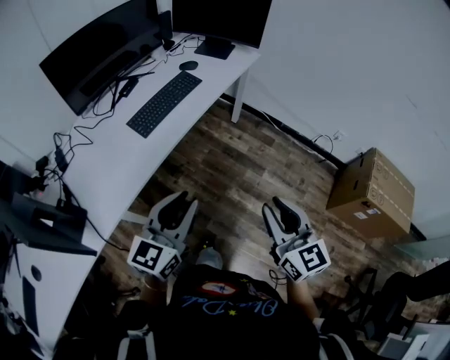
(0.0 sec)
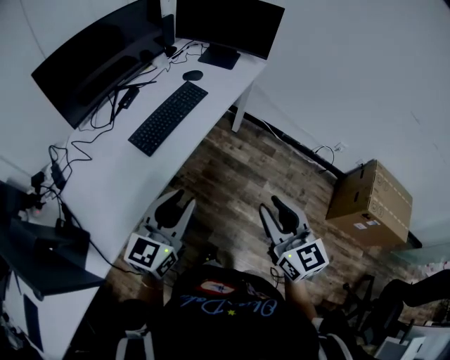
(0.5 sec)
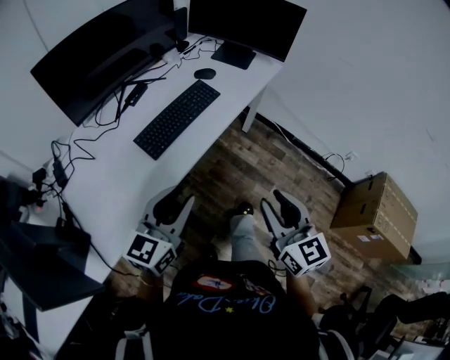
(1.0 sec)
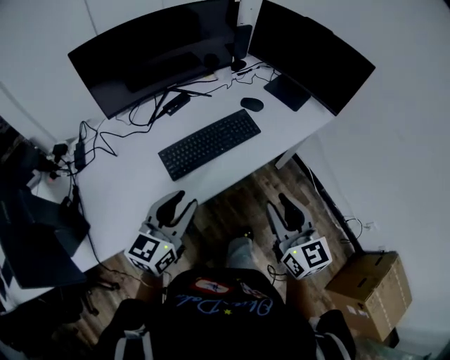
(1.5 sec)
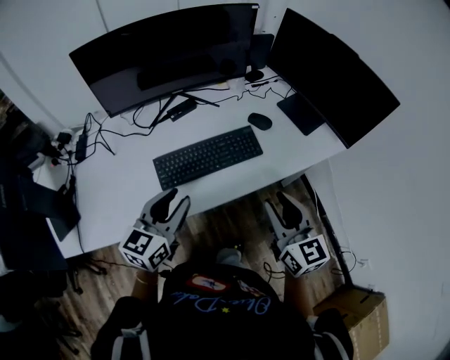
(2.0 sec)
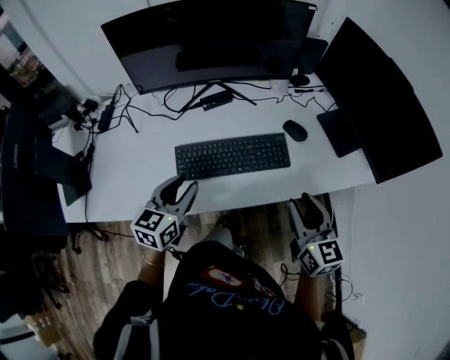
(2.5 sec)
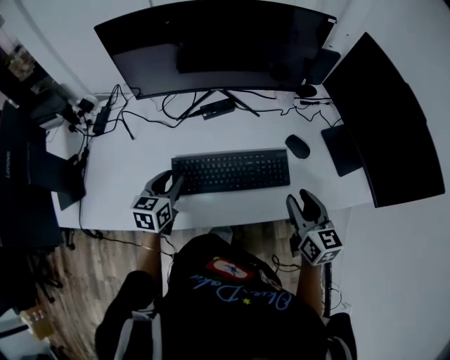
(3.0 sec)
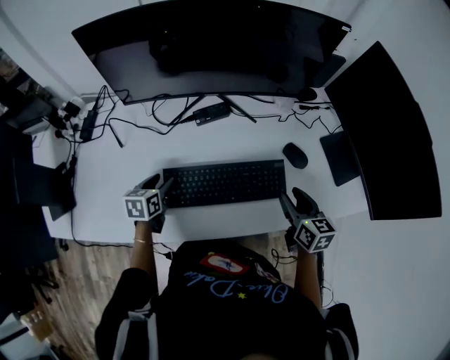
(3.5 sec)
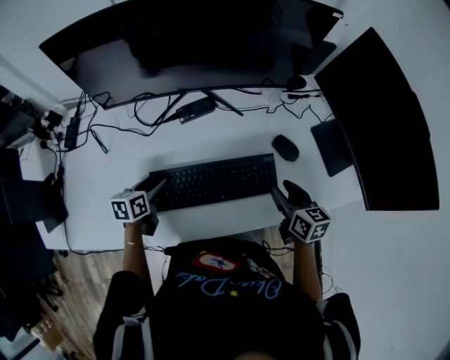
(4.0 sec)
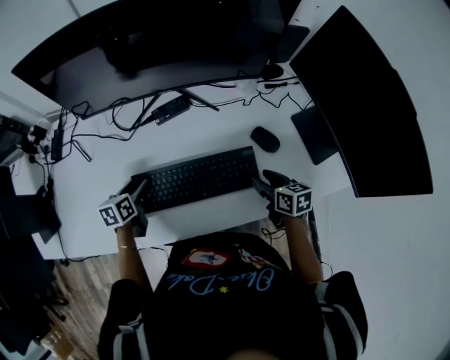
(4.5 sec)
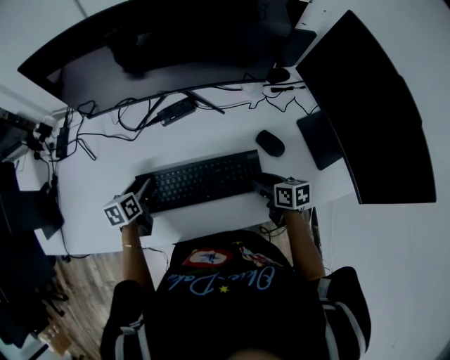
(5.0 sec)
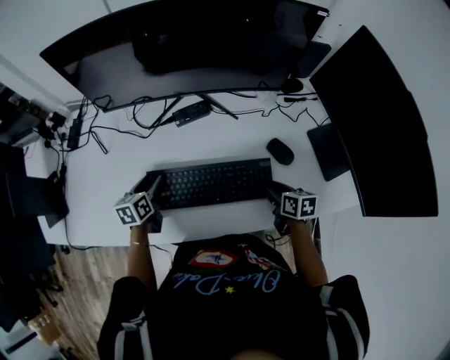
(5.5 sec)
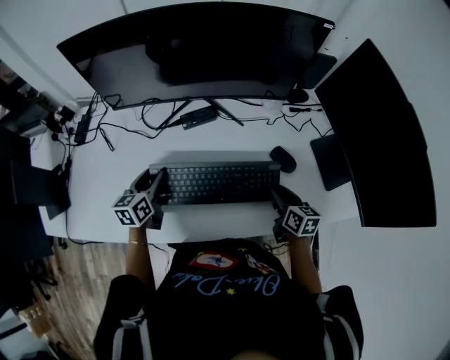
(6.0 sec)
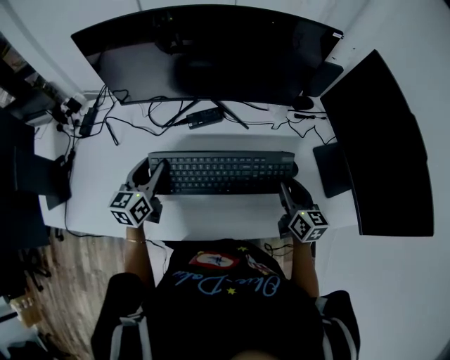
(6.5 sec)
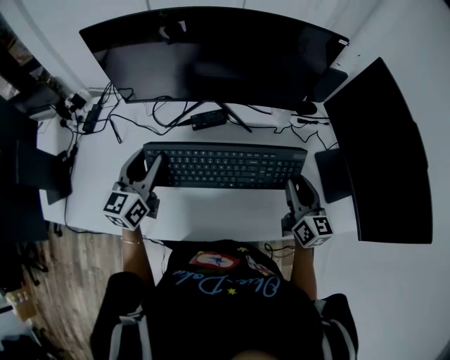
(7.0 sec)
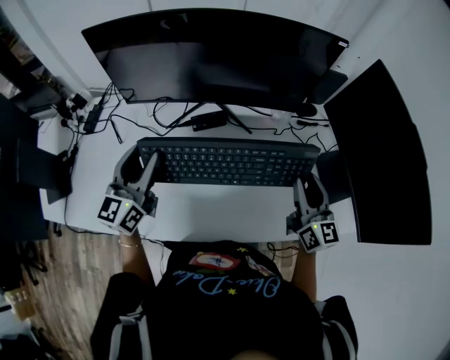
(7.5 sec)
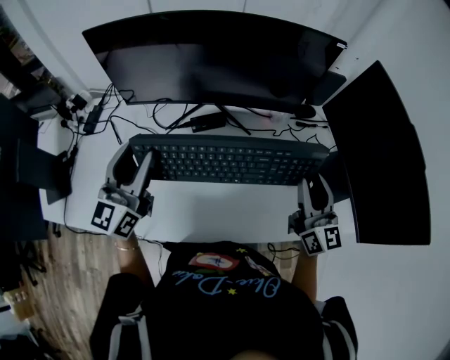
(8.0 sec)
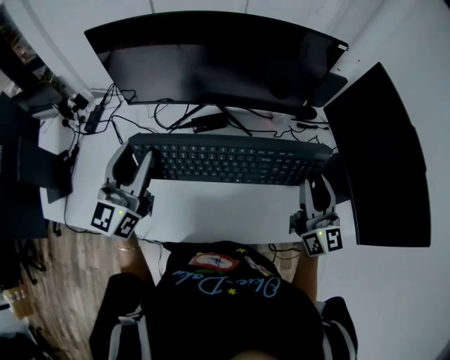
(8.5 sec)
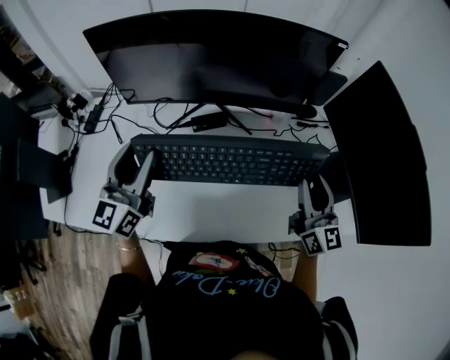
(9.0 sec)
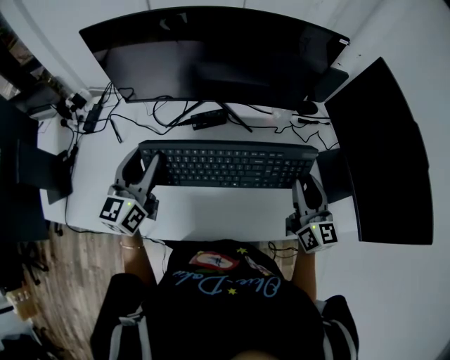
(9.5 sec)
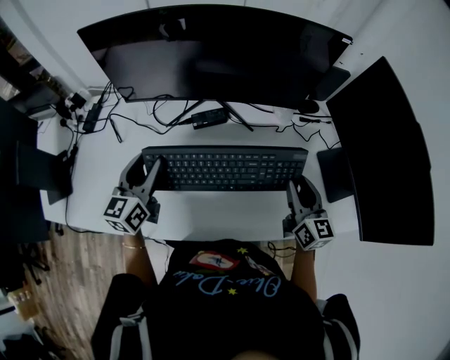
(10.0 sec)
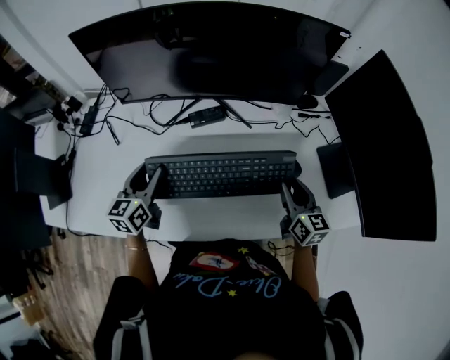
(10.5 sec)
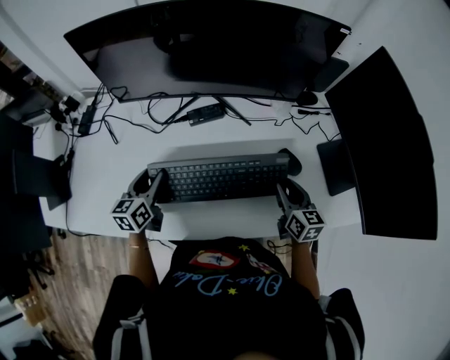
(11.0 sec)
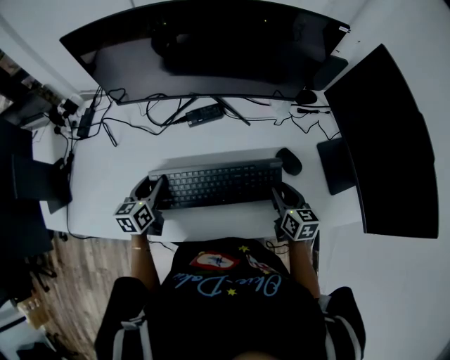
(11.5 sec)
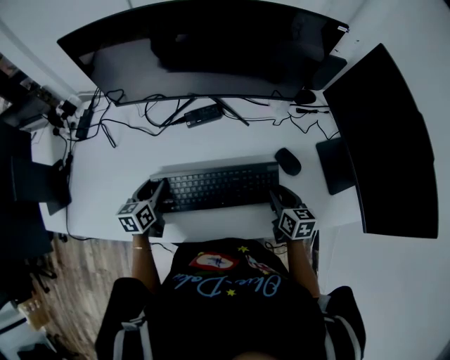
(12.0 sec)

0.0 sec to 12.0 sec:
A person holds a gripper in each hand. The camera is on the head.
0.0 sec to 2.0 sec: The right gripper moves some 50 cm, and changes its angle by about 30 degrees. The left gripper changes place by some 35 cm, and swivels roughly 40 degrees.
2.0 sec to 4.0 sec: The right gripper shifts some 30 cm forward and downward, and changes its angle by roughly 30 degrees. Meanwhile the left gripper shifts roughly 30 cm downward, forward and to the left, swivels approximately 40 degrees, and opens.
4.0 sec to 6.0 sec: The left gripper heads upward, covering approximately 5 cm, and turns by approximately 20 degrees. Meanwhile the right gripper moves downward, some 5 cm.
6.0 sec to 8.0 sec: Both grippers move upward, approximately 25 cm. The left gripper tips its fingers upward by some 30 degrees; the right gripper tilts its fingers some 40 degrees upward.
8.0 sec to 10.0 sec: Both grippers travel together downward, approximately 10 cm.
10.0 sec to 12.0 sec: Both grippers move downward, roughly 15 cm. The left gripper changes its angle by about 30 degrees. The right gripper swivels approximately 30 degrees.

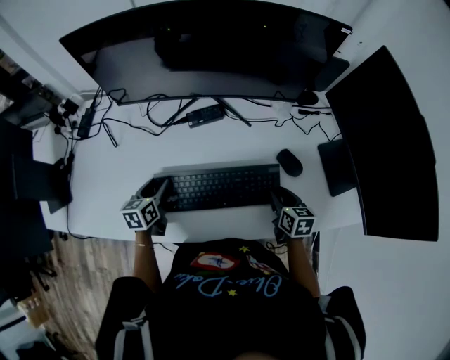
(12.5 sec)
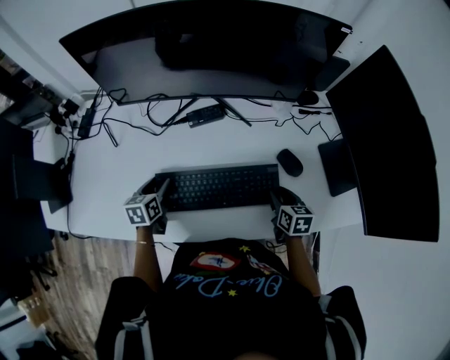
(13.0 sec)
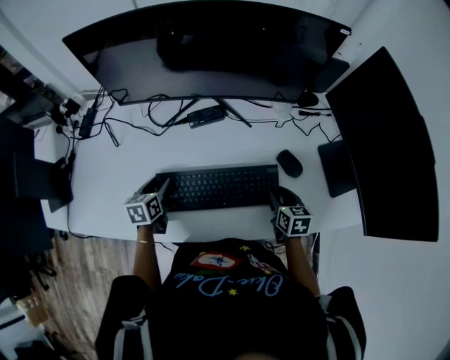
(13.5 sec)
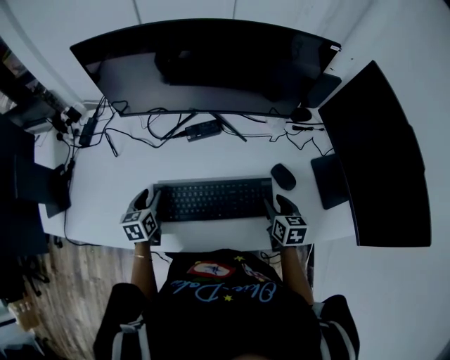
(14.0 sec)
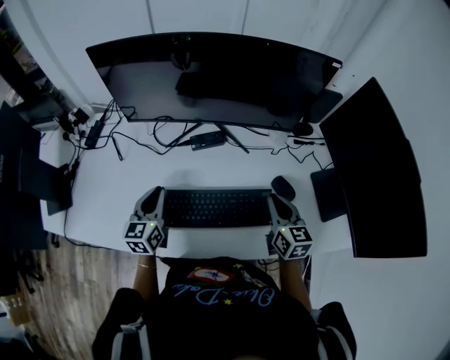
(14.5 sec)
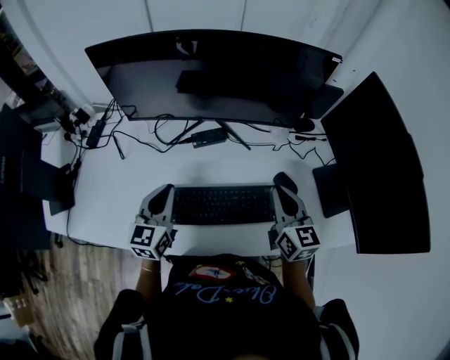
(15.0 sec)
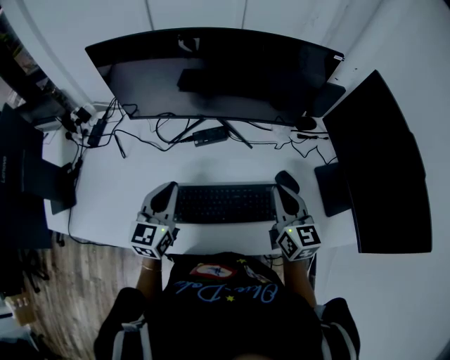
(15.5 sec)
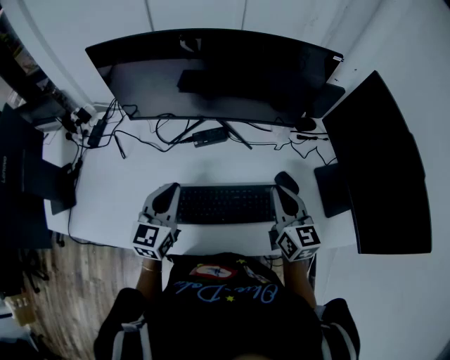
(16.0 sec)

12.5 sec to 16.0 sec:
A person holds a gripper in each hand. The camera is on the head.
12.5 sec to 14.5 sec: Both grippers travel together upward, roughly 10 cm. The left gripper turns by roughly 20 degrees, and closes, while the right gripper rotates roughly 20 degrees, and closes.
14.5 sec to 16.0 sec: The right gripper travels upward by about 5 cm; the left gripper moves upward and to the right, approximately 10 cm.

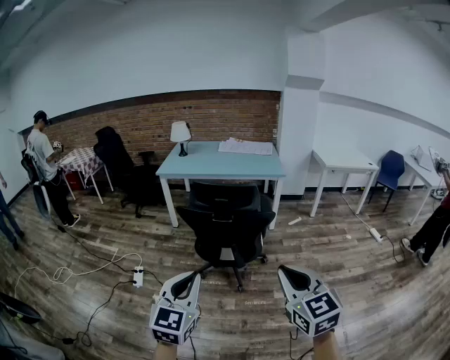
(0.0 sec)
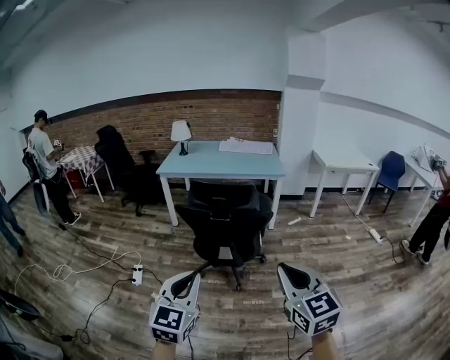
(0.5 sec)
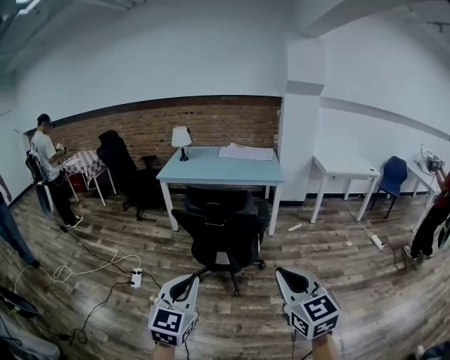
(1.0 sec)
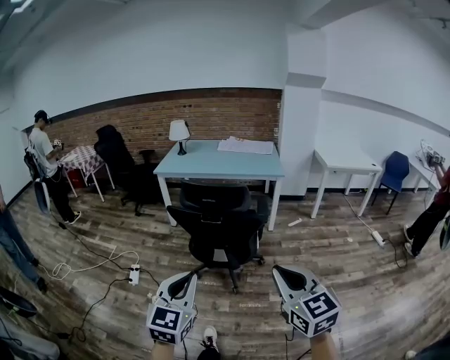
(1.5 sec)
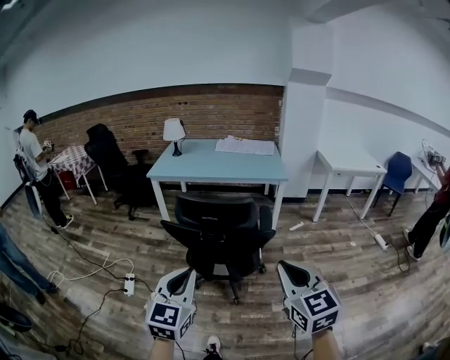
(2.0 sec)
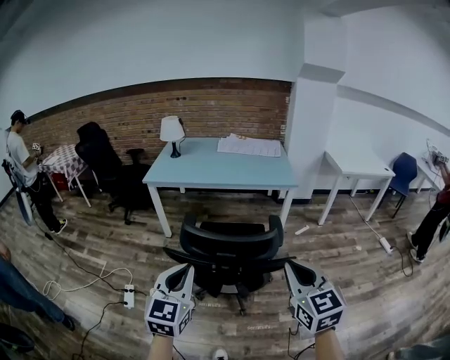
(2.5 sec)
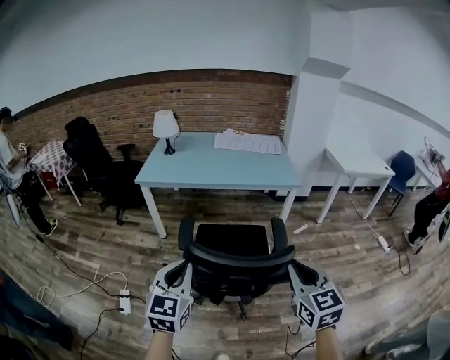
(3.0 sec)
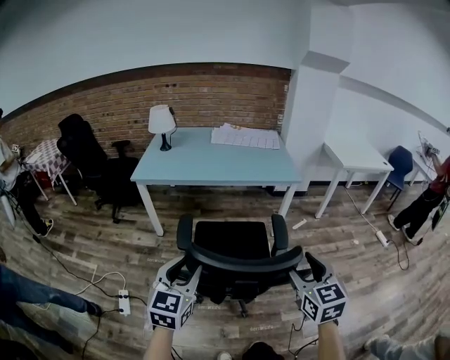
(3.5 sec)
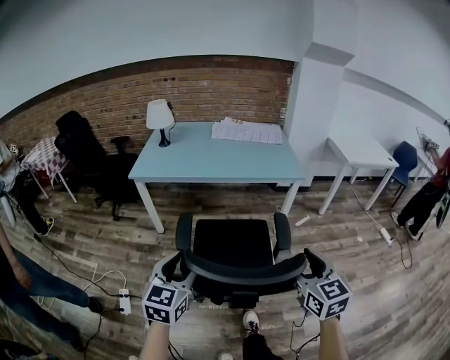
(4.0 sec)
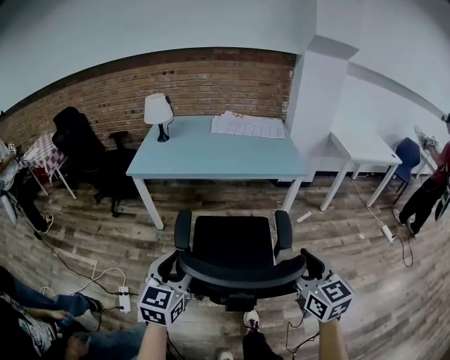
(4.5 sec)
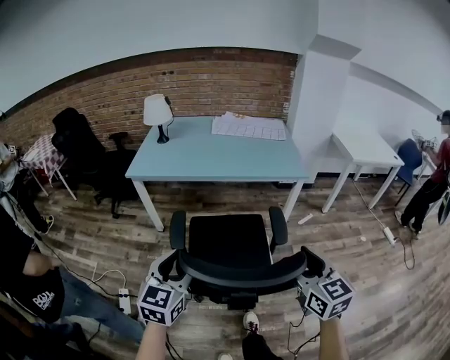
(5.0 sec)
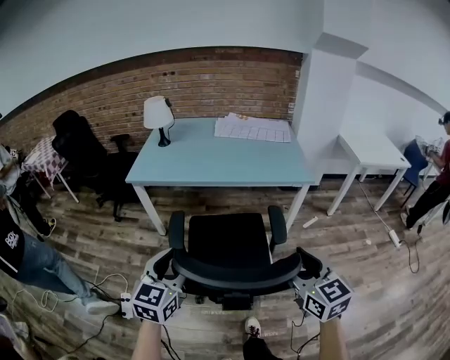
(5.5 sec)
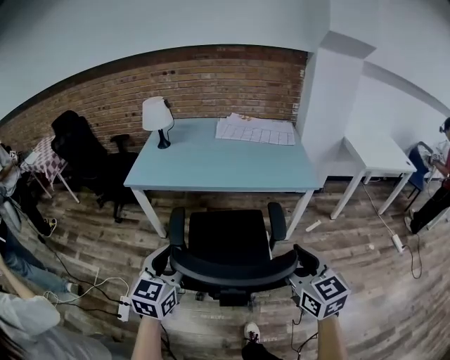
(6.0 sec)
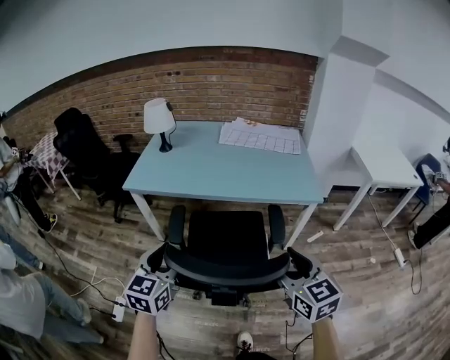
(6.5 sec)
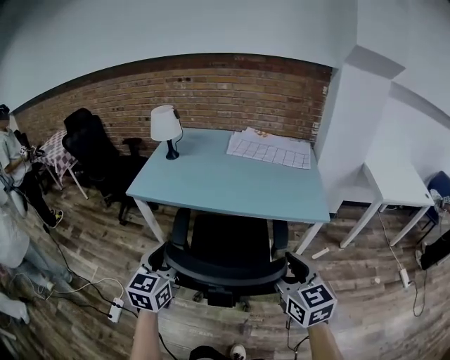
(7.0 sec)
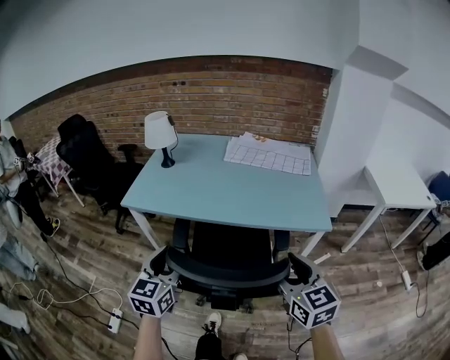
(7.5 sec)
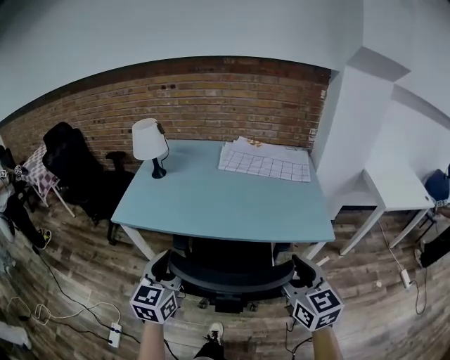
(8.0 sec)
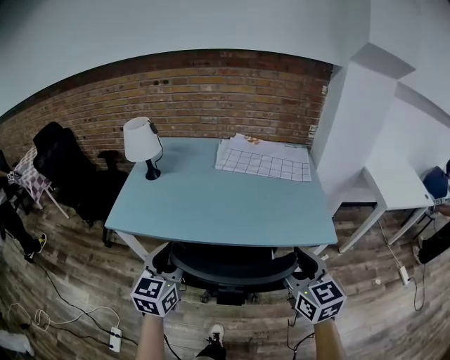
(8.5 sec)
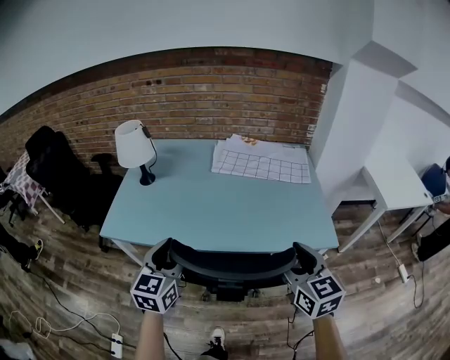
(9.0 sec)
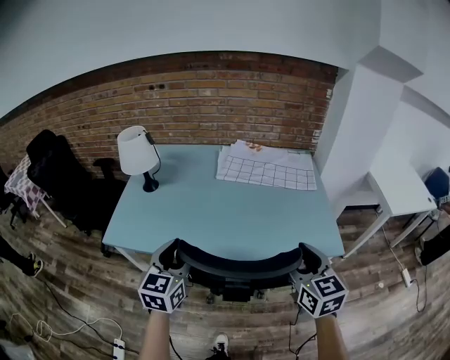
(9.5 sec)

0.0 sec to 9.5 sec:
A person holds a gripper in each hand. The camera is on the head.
0.0 sec to 2.0 sec: The grippers both shift forward by approximately 15 cm.
2.0 sec to 4.0 sec: Both grippers travel together forward, roughly 30 cm. The left gripper opens its fingers; the right gripper opens its fingers.
4.0 sec to 5.5 sec: The grippers both shift forward by approximately 10 cm.
5.5 sec to 7.5 sec: The two grippers go approximately 25 cm forward.
7.5 sec to 9.5 sec: Both grippers travel together forward, roughly 25 cm.

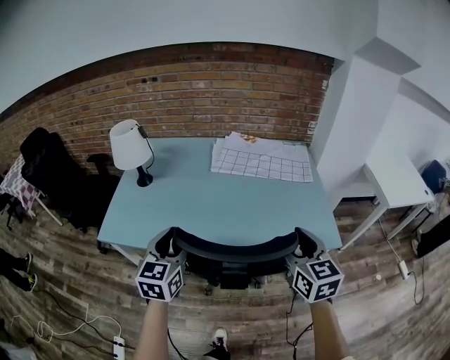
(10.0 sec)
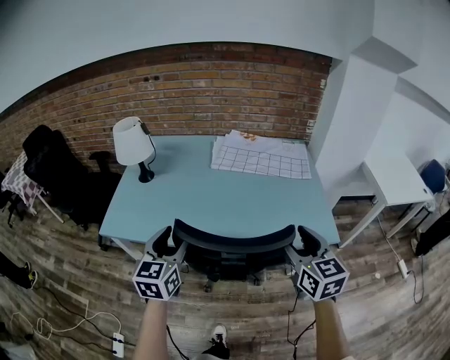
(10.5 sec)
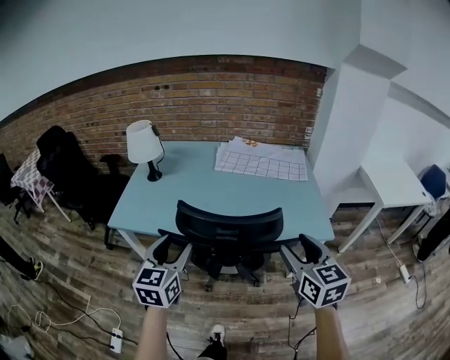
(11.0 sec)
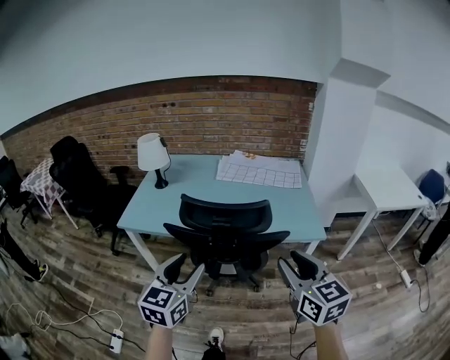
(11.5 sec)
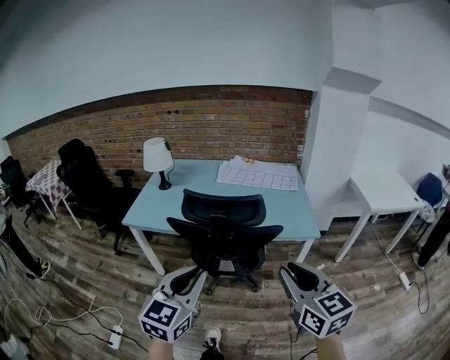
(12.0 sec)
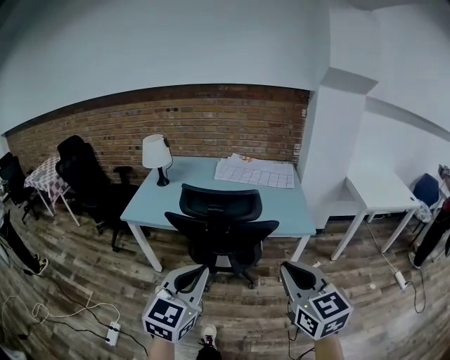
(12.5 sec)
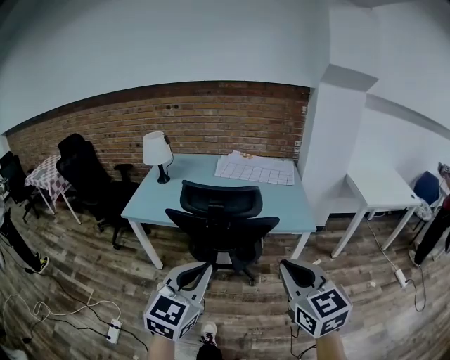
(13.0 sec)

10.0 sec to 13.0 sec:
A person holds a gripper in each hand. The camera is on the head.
10.0 sec to 11.5 sec: Both grippers travel together backward, approximately 25 cm. The right gripper closes up.
11.5 sec to 13.0 sec: The right gripper shifts about 10 cm backward, and closes its fingers. Meanwhile the left gripper goes roughly 15 cm backward and to the right, and closes.
